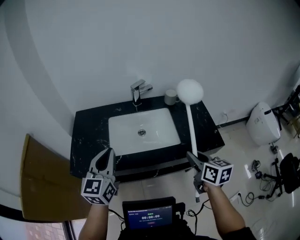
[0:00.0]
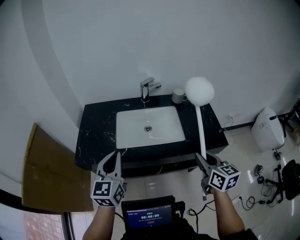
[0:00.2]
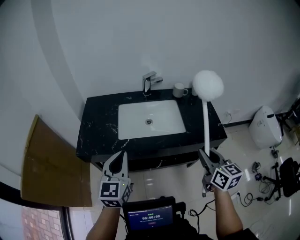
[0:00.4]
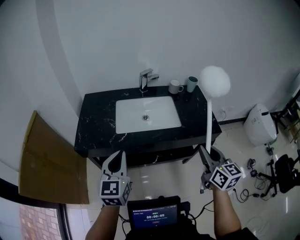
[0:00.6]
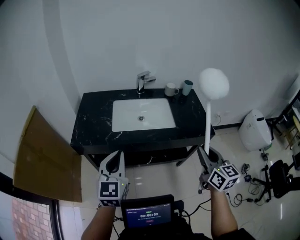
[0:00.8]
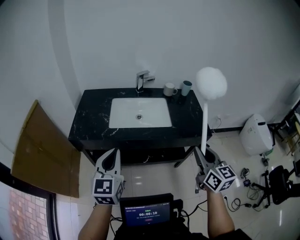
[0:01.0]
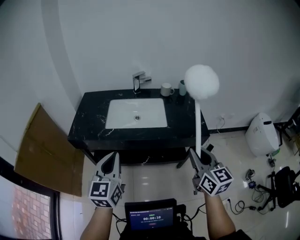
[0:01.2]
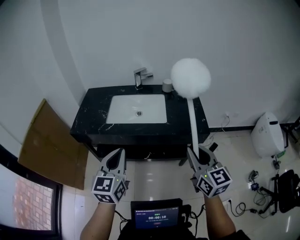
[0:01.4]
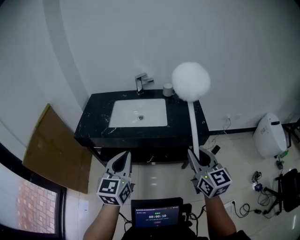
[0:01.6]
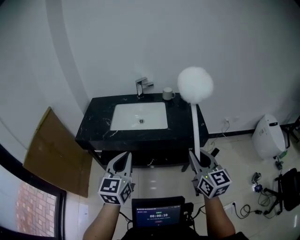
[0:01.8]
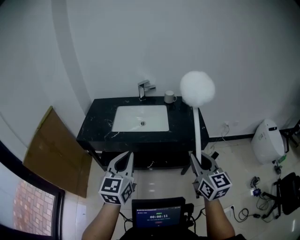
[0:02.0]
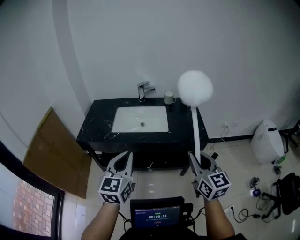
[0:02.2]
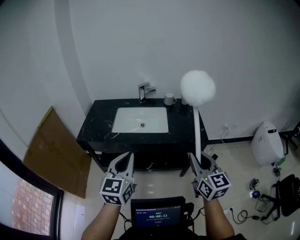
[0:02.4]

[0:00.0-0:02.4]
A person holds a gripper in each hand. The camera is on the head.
0:00.0 to 0:01.2: The grippers both shift backward and to the right by roughly 25 cm. The right gripper swivels some 20 degrees.
0:01.2 to 0:02.4: The right gripper goes about 5 cm backward, while the left gripper shifts about 10 cm to the right and backward.

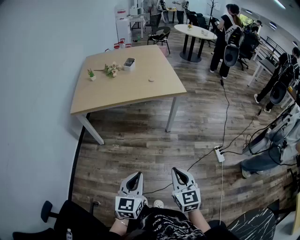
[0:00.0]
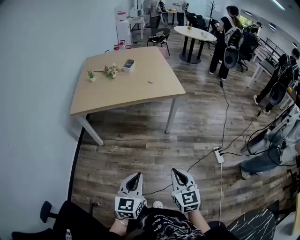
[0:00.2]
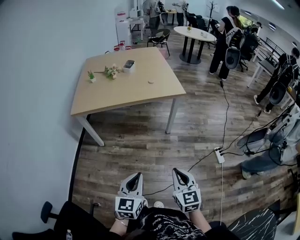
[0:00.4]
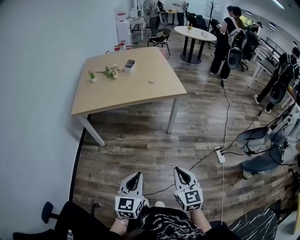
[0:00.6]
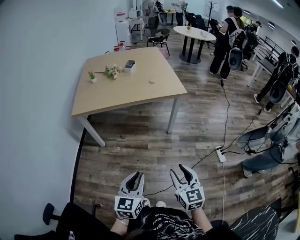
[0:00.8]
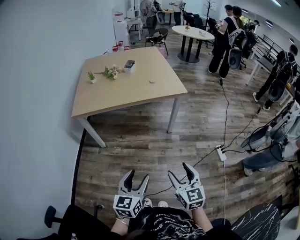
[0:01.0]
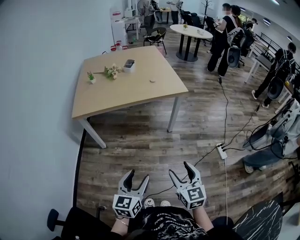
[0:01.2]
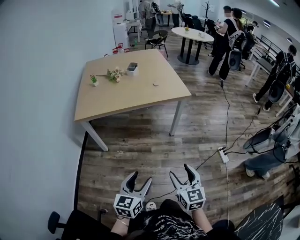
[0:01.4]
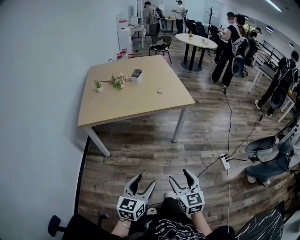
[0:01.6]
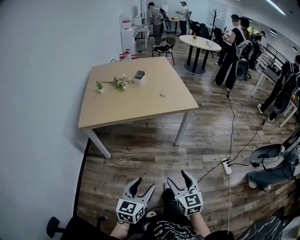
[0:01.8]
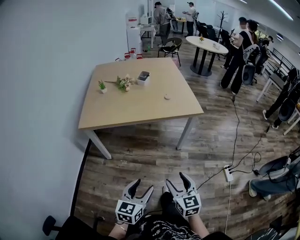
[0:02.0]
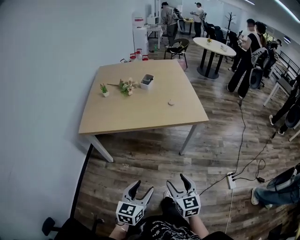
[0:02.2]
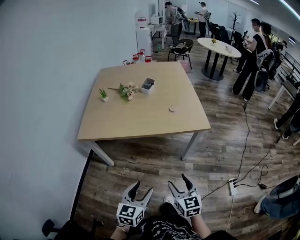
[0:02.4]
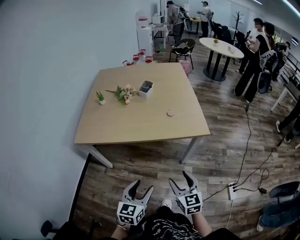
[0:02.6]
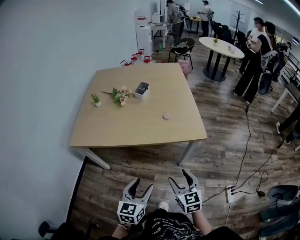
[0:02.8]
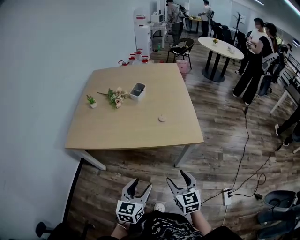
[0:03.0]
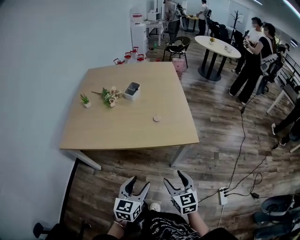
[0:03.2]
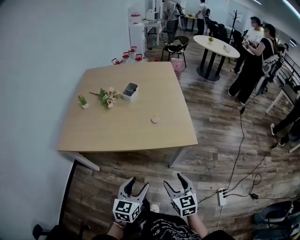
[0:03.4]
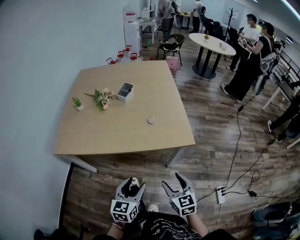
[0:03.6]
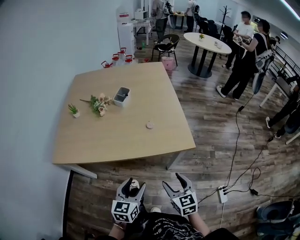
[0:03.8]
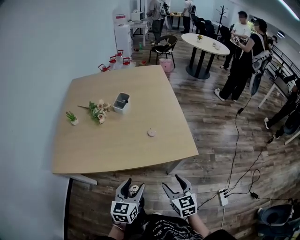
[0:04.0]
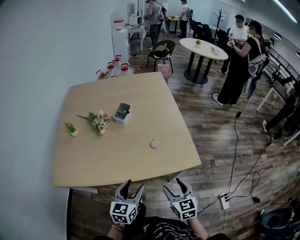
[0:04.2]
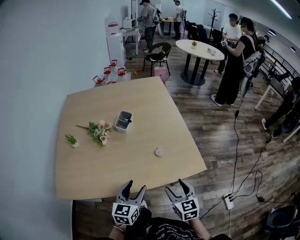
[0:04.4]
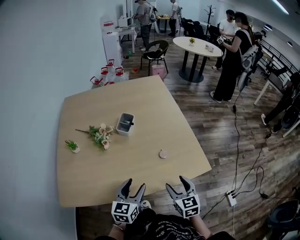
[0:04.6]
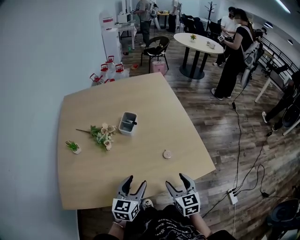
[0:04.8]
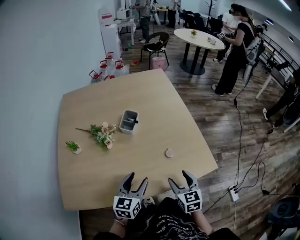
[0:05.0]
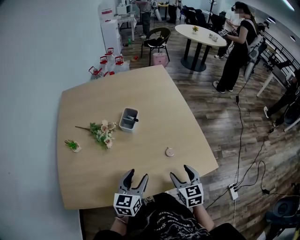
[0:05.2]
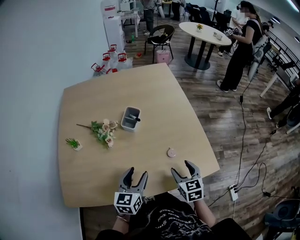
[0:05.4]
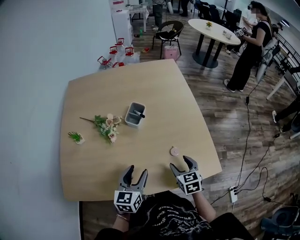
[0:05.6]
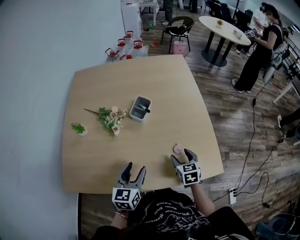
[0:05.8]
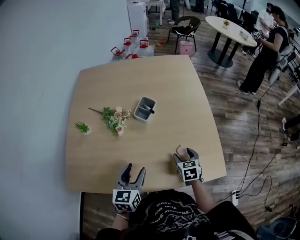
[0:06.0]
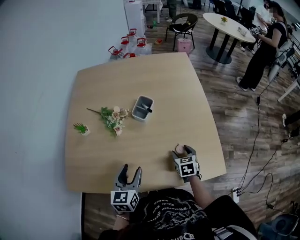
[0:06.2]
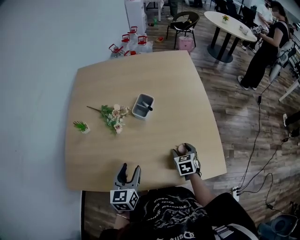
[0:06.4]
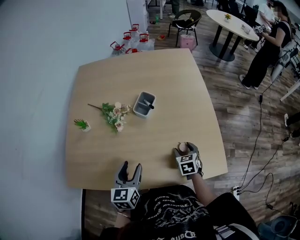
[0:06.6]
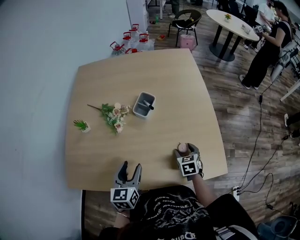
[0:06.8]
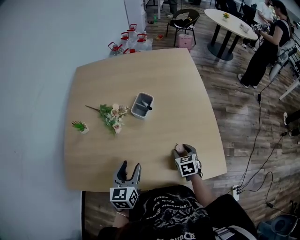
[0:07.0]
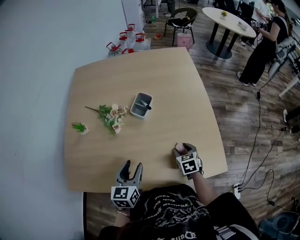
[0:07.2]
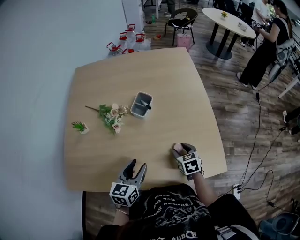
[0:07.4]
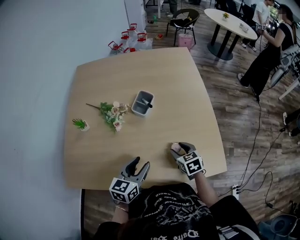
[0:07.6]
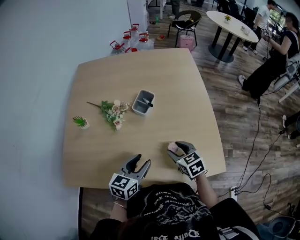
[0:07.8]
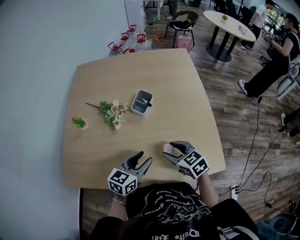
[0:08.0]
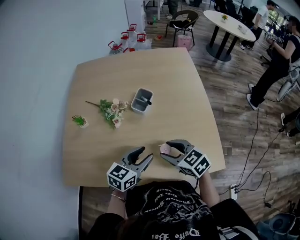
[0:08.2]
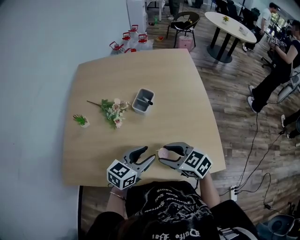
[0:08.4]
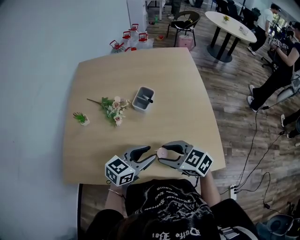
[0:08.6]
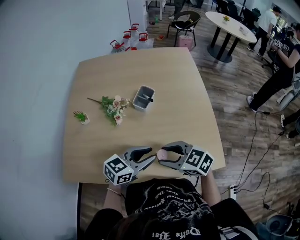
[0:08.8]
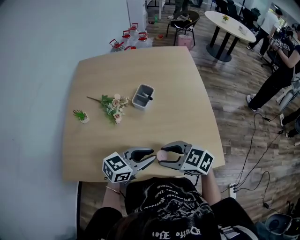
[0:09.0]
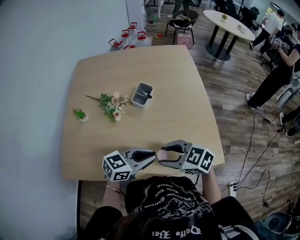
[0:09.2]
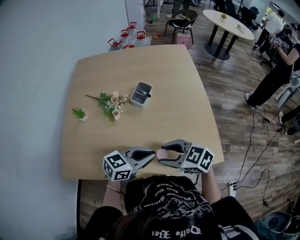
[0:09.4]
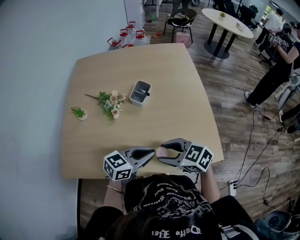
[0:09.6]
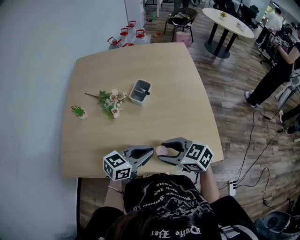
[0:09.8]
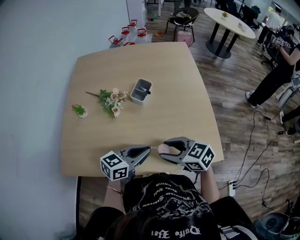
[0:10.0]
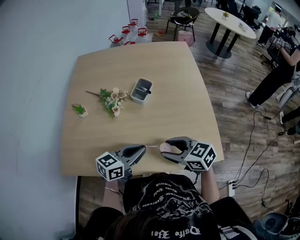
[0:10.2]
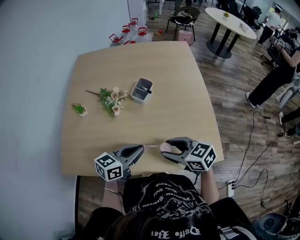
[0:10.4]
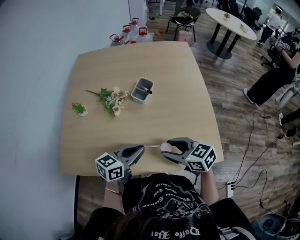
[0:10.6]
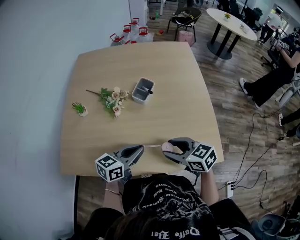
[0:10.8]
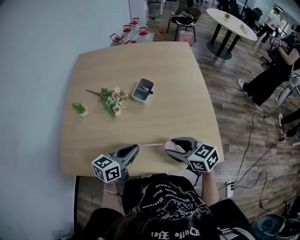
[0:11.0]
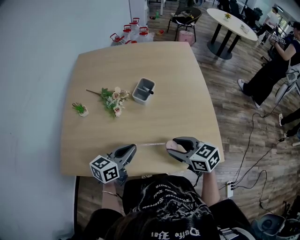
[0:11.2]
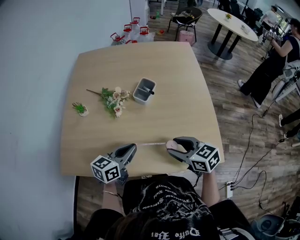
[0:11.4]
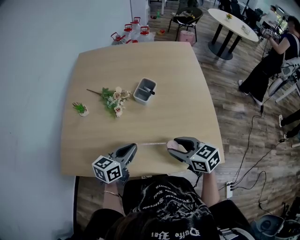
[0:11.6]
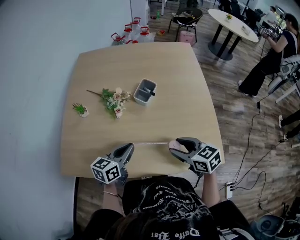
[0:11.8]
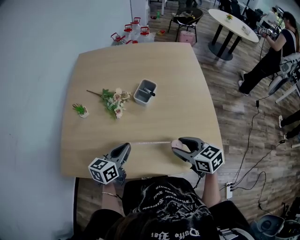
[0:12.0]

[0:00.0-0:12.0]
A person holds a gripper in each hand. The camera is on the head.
0:00.0 to 0:01.6: The grippers both shift to the left by some 5 cm. The right gripper opens up, while the left gripper opens up.
0:01.6 to 0:03.0: Both grippers travel together forward, some 35 cm.
0:03.0 to 0:04.4: Both grippers move forward, about 25 cm.
0:04.4 to 0:06.0: The right gripper goes approximately 25 cm forward and downward. The left gripper is displaced forward and to the left by some 15 cm.
0:06.0 to 0:07.6: There are only small adjustments of the grippers.
0:07.6 to 0:09.0: The right gripper moves approximately 20 cm, and changes its angle by approximately 40 degrees. The left gripper moves some 5 cm, and turns by about 30 degrees.
0:09.0 to 0:10.4: There are only small adjustments of the grippers.
0:10.4 to 0:12.0: The right gripper changes place by about 5 cm. Meanwhile the left gripper travels to the left by some 10 cm.

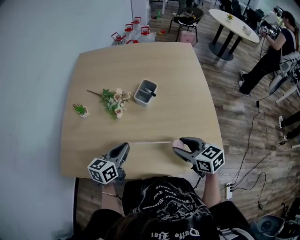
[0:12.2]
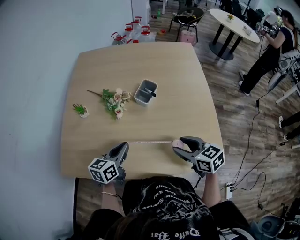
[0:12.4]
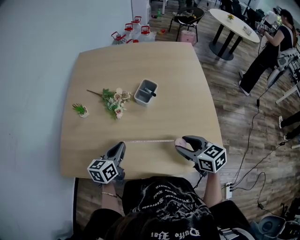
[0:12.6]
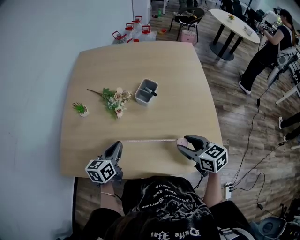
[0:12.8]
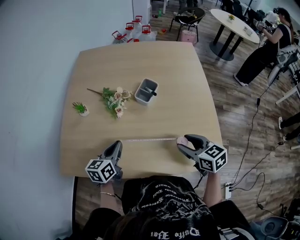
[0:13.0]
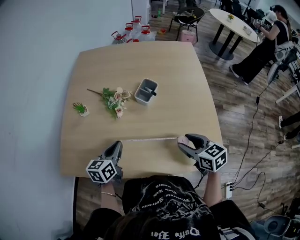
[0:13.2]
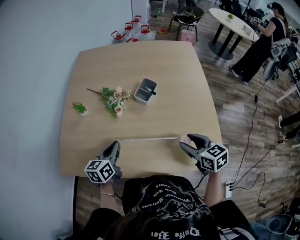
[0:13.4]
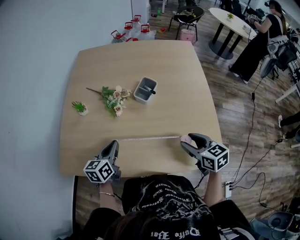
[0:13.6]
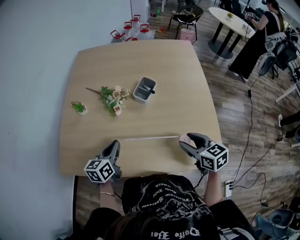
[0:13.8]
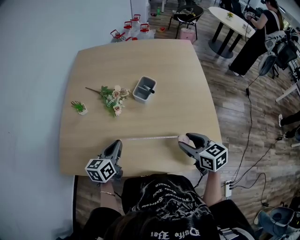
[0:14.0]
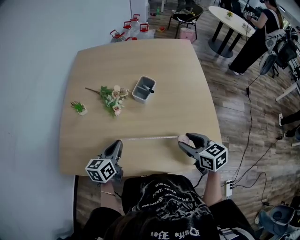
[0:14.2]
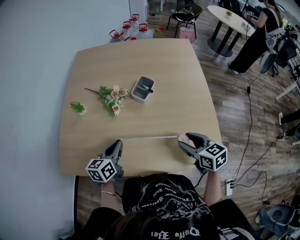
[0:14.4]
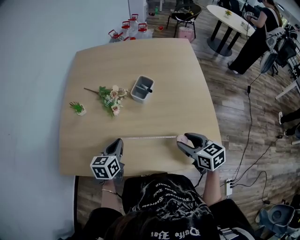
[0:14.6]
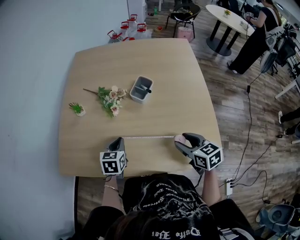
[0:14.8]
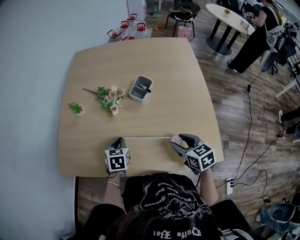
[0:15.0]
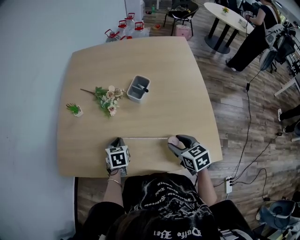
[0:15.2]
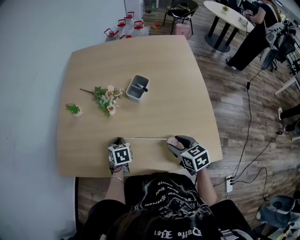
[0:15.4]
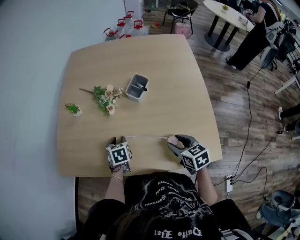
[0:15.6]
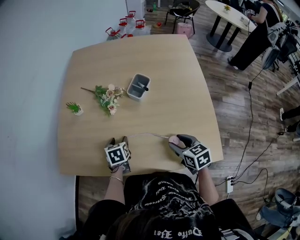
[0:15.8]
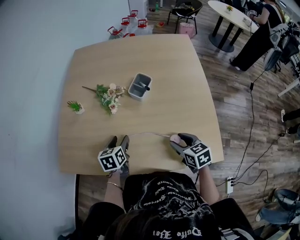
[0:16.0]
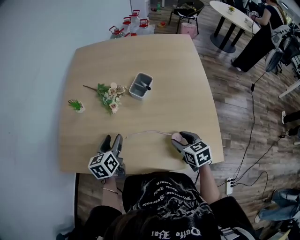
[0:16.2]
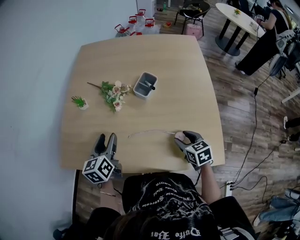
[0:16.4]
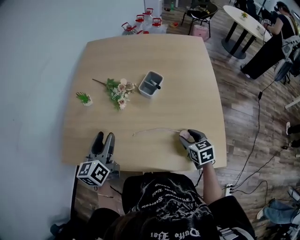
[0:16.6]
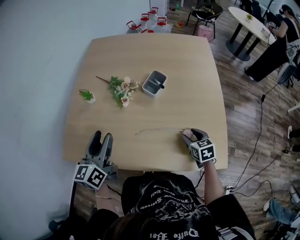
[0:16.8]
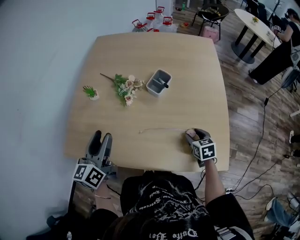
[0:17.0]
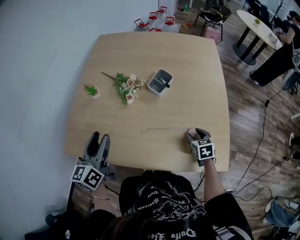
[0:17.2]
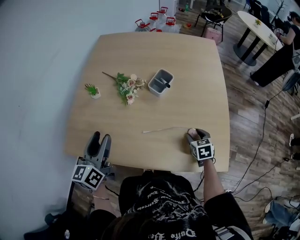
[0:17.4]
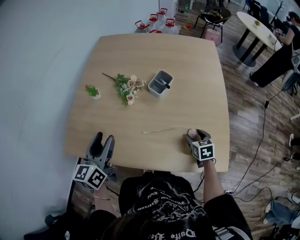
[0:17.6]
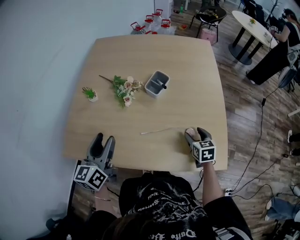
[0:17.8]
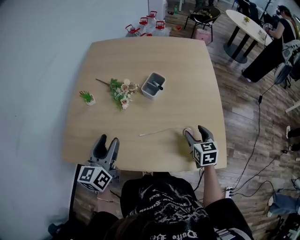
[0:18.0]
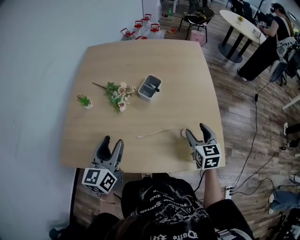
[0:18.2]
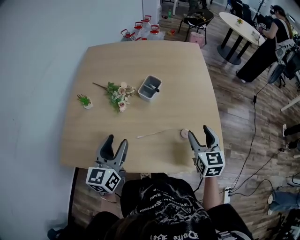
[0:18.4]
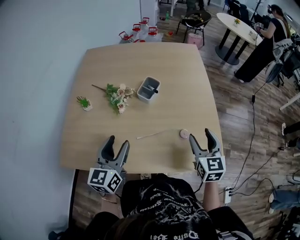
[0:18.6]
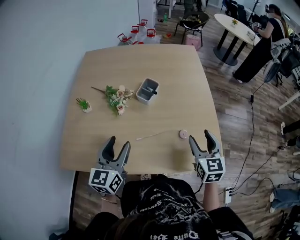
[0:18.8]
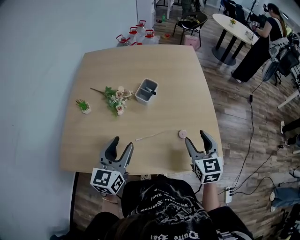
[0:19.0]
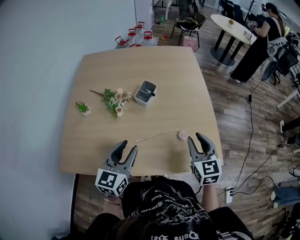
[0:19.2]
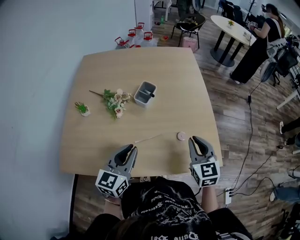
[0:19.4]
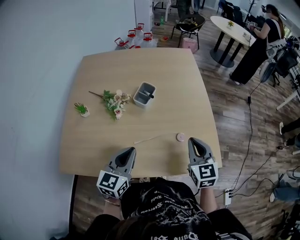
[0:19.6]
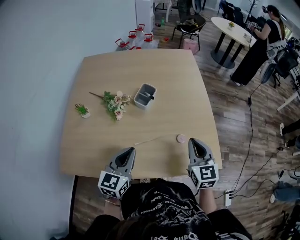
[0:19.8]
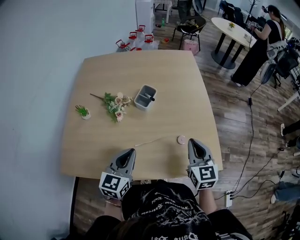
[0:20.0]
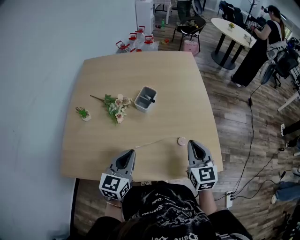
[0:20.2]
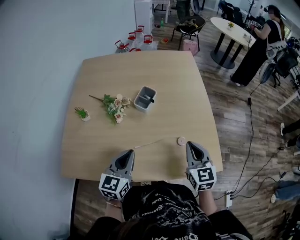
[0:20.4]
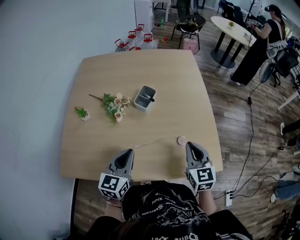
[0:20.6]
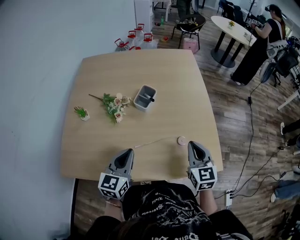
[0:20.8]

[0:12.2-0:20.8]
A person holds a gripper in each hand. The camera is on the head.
0:12.2 to 0:13.6: The left gripper shifts approximately 5 cm to the left.
0:13.6 to 0:15.0: The left gripper heads downward, covering about 5 cm, and rotates some 30 degrees.
0:15.0 to 0:16.6: The left gripper travels upward by some 15 cm, angles its fingers upward, by about 30 degrees, and opens. The right gripper moves downward, roughly 5 cm.
0:16.6 to 0:18.0: The grippers make only small movements.
0:18.0 to 0:19.4: The right gripper heads upward and backward, covering roughly 15 cm, and closes up. The left gripper is displaced to the right by approximately 10 cm, swivels about 20 degrees, and closes.
0:19.4 to 0:20.8: The grippers move only a little.
